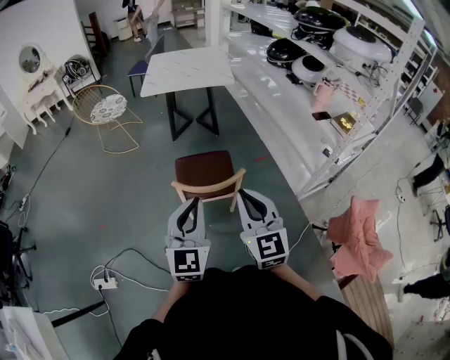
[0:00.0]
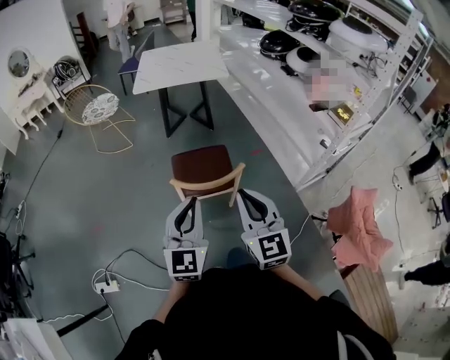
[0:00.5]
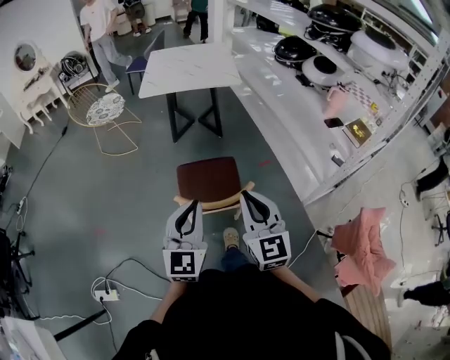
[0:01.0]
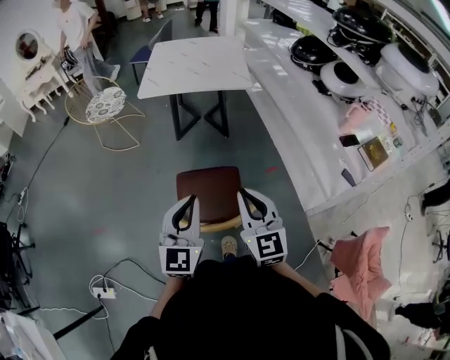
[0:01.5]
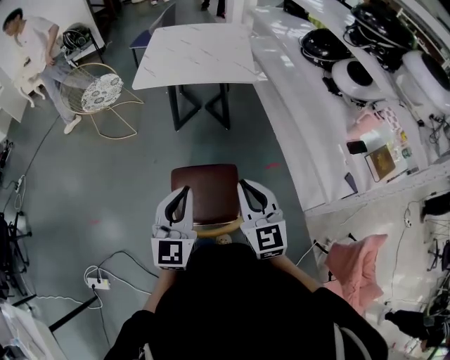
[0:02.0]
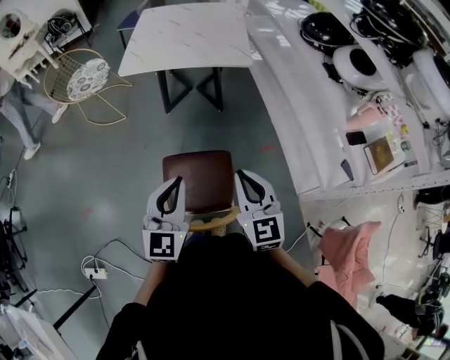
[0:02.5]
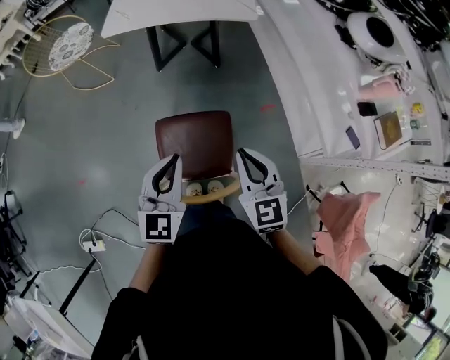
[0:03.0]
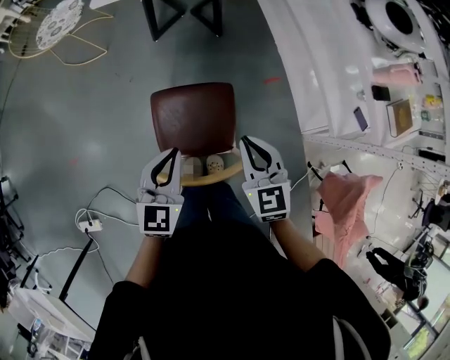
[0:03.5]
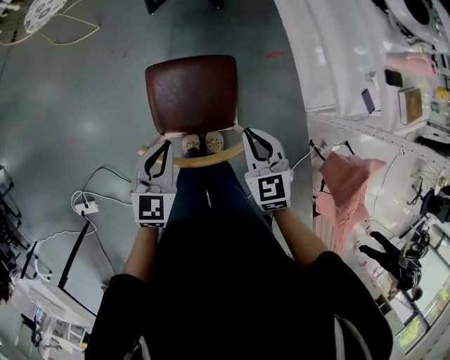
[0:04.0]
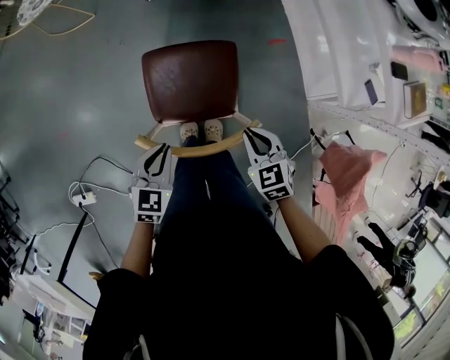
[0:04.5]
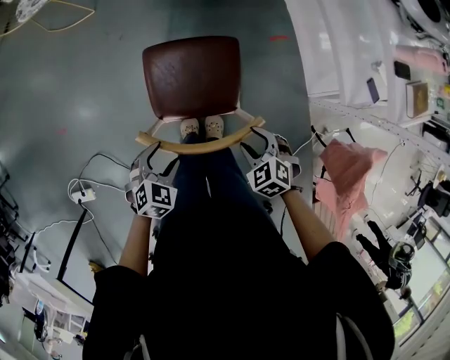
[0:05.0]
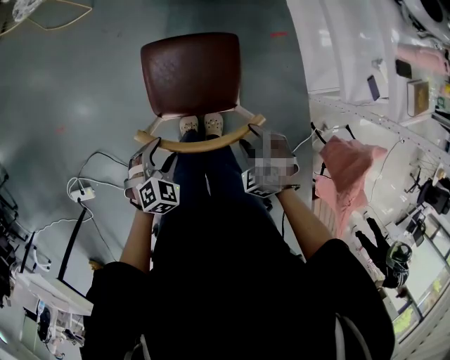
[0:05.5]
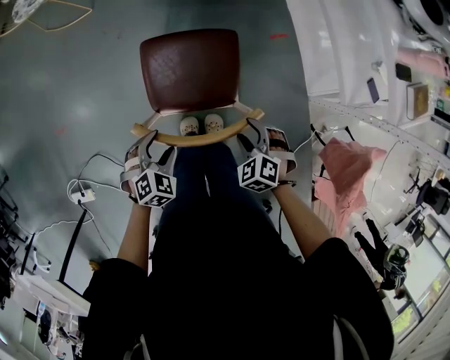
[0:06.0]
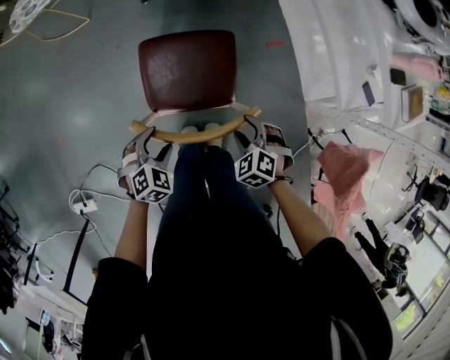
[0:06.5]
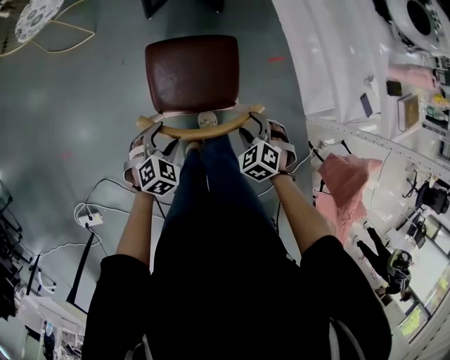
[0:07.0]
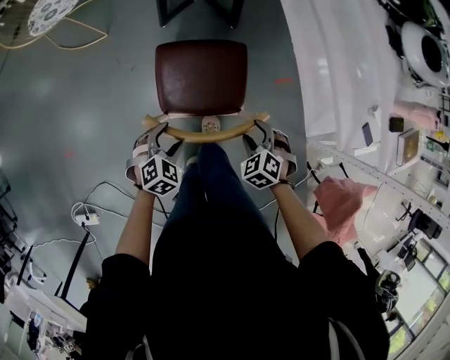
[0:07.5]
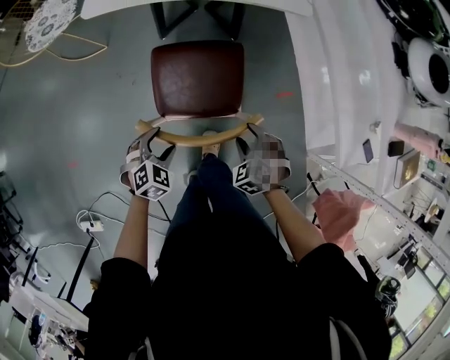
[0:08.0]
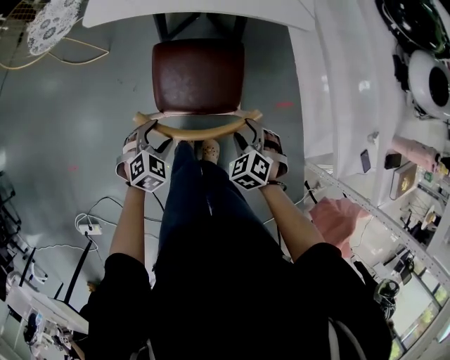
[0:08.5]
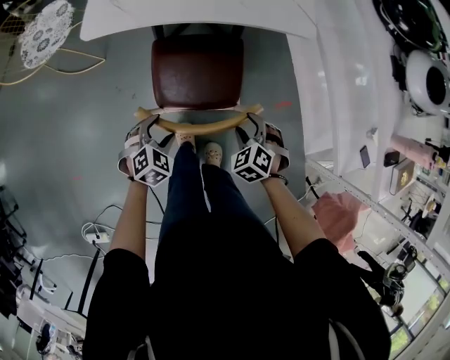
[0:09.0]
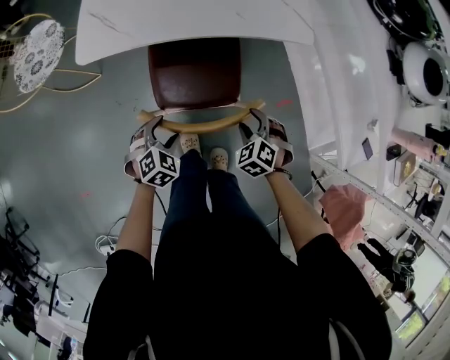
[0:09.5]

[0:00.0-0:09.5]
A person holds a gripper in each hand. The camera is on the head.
0:00.0 to 0:02.0: Both grippers travel together forward, about 35 cm.
0:02.0 to 0:04.0: The two grippers go approximately 20 cm downward. The left gripper changes its angle by some 30 degrees. The right gripper swivels approximately 30 degrees.
0:04.0 to 0:05.5: The two grippers go about 15 cm downward and backward. The right gripper changes its angle by about 40 degrees, and opens its fingers. The left gripper changes its angle by approximately 40 degrees, and opens up.
0:05.5 to 0:07.5: Both grippers move forward, approximately 20 cm.
0:07.5 to 0:09.5: Both grippers travel together forward, about 25 cm.

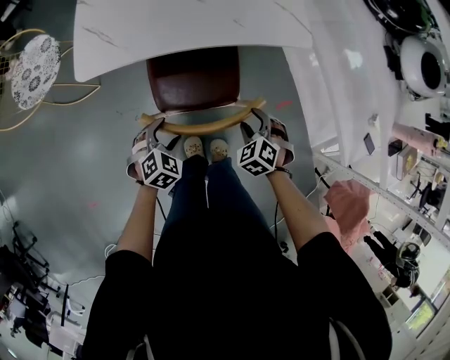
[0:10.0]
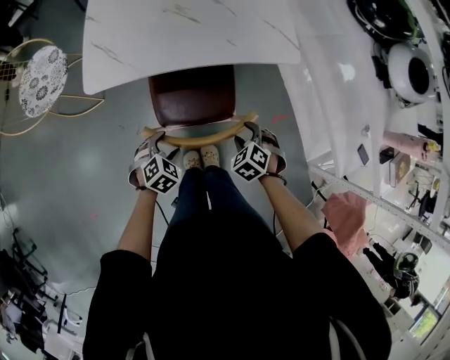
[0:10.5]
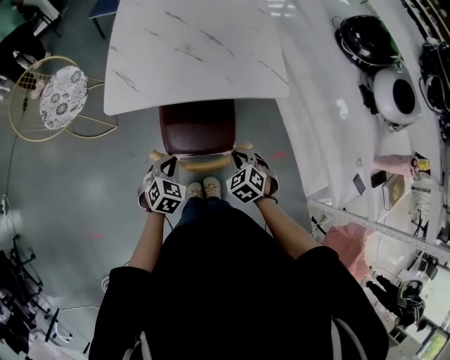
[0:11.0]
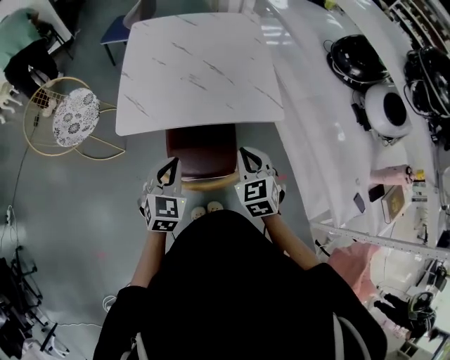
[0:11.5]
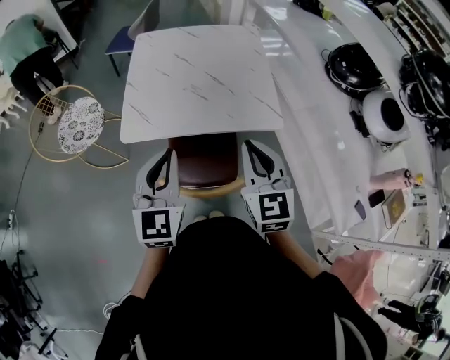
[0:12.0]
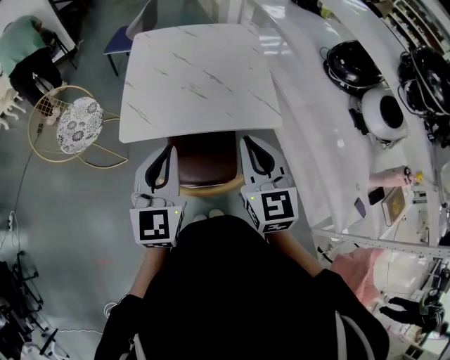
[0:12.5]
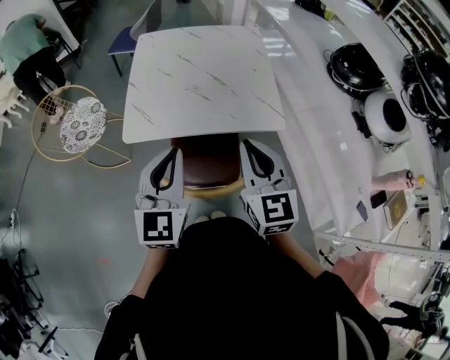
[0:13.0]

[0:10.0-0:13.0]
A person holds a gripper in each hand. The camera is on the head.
0:10.0 to 0:11.5: Both grippers travel together upward, about 25 cm. The right gripper rotates roughly 40 degrees, and closes. The left gripper swivels about 40 degrees, and closes its fingers.
0:11.5 to 0:13.0: The grippers both shift upward by some 15 cm. The left gripper rotates approximately 30 degrees. Meanwhile the right gripper swivels about 30 degrees.

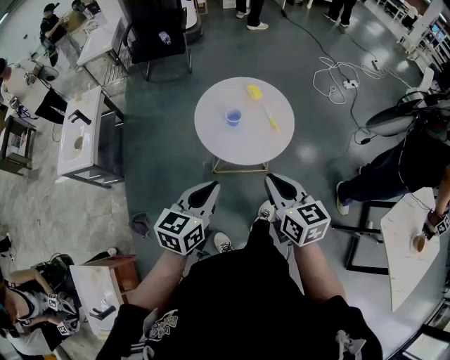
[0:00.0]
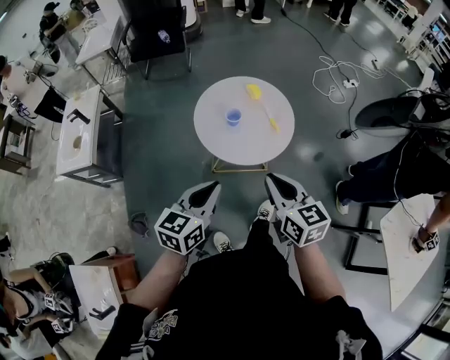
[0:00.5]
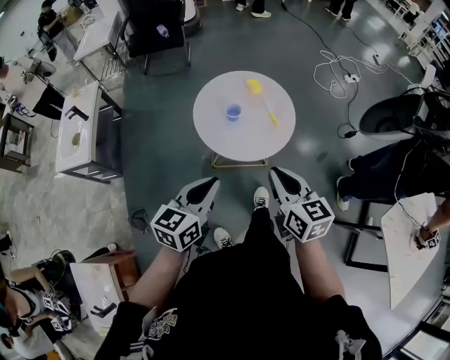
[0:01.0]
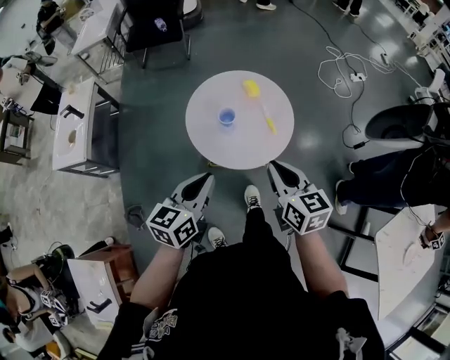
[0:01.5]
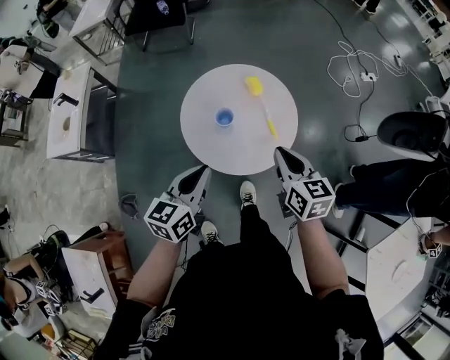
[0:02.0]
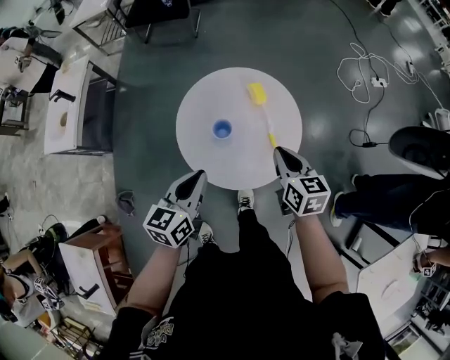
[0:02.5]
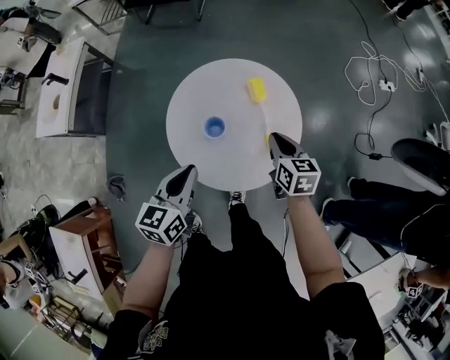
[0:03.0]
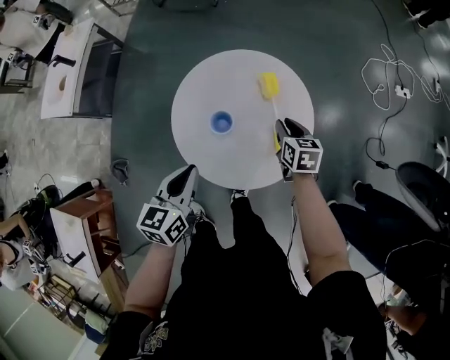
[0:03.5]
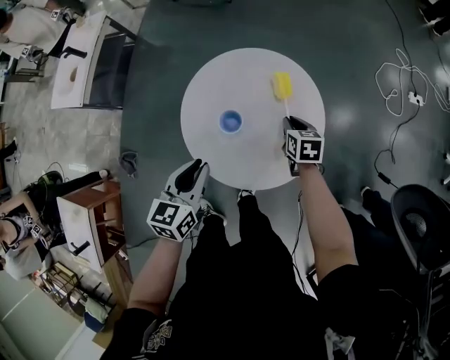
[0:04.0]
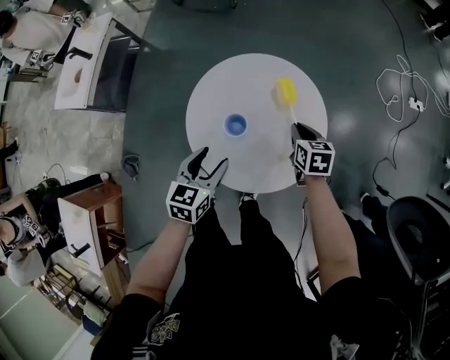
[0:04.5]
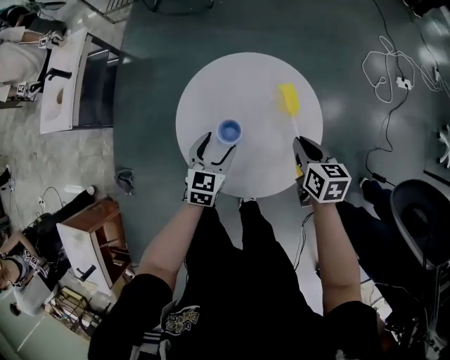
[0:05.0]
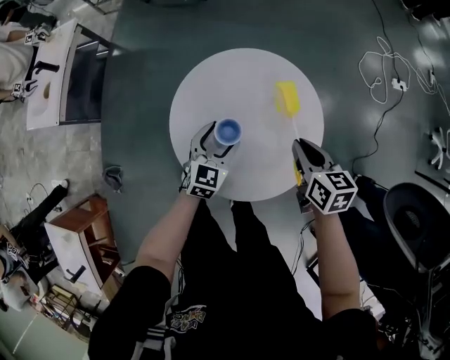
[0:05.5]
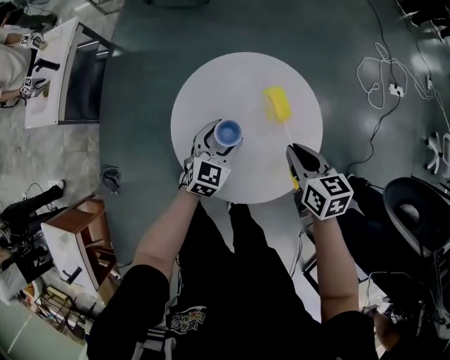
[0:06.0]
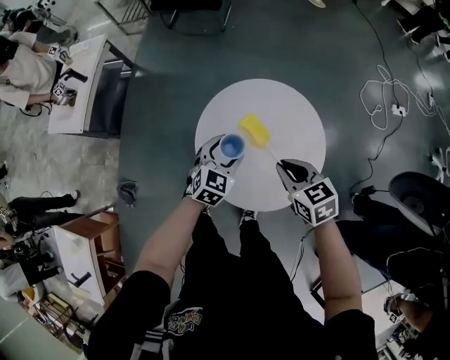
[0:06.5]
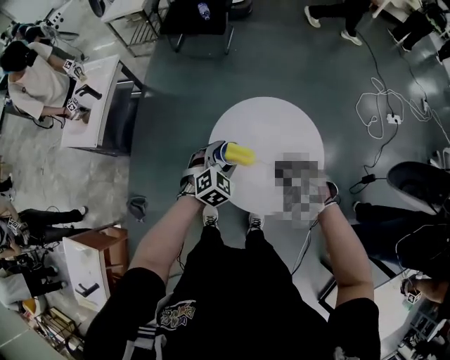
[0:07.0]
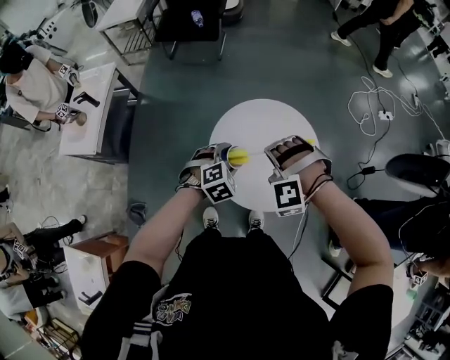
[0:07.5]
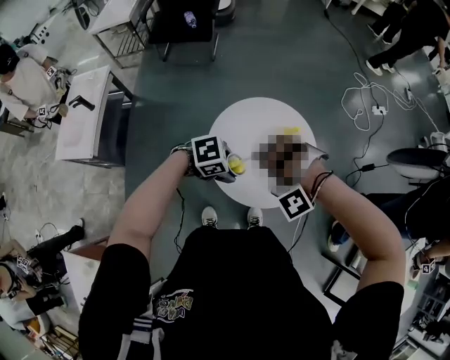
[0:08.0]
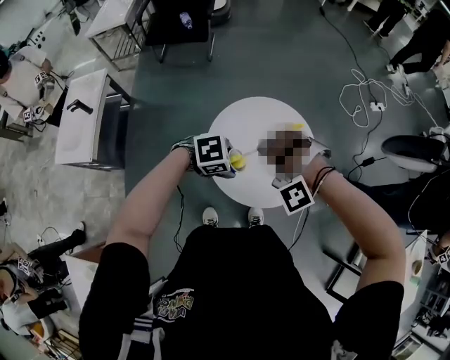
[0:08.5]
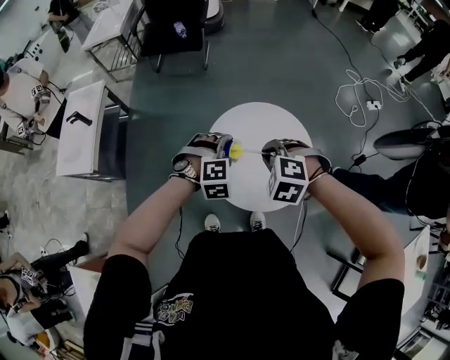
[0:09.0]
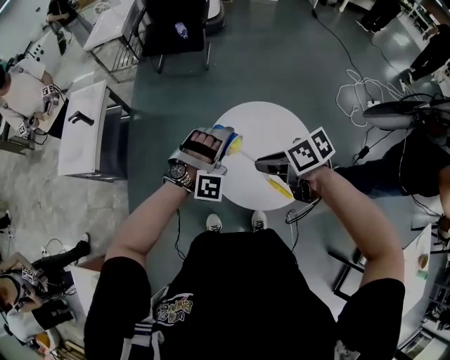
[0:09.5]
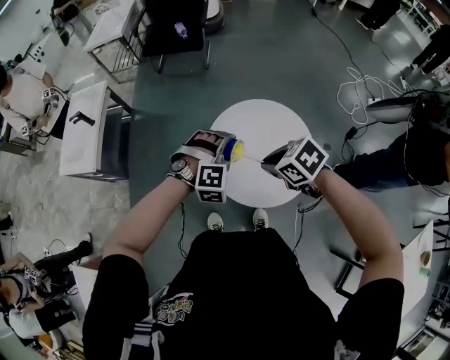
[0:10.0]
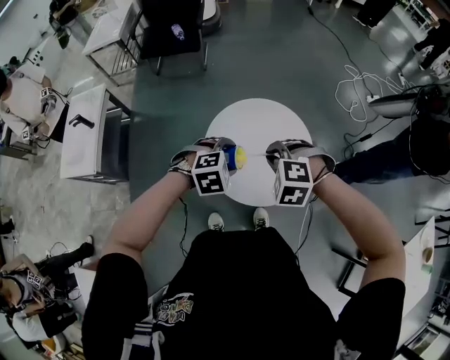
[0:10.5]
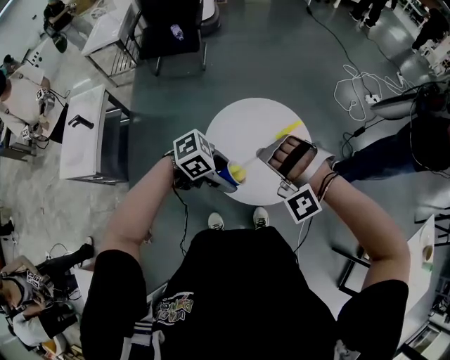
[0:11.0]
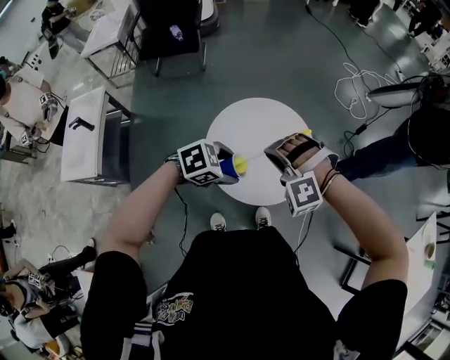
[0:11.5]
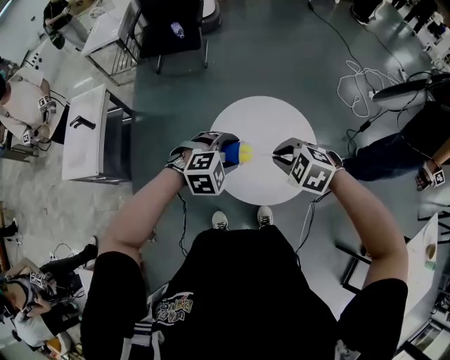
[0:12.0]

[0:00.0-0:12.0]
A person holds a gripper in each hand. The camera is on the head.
0:00.0 to 0:02.0: The two grippers go approximately 15 cm forward.
0:02.0 to 0:04.0: The right gripper is displaced downward and forward by some 30 cm, and swivels roughly 30 degrees, while the left gripper heads downward and forward, covering approximately 10 cm, and rotates approximately 20 degrees.
0:04.0 to 0:06.0: The left gripper heads downward and forward, covering approximately 15 cm, swivels about 30 degrees, and opens. The right gripper shifts roughly 15 cm upward and backward.
0:06.0 to 0:08.0: The right gripper shifts by roughly 20 cm, and rotates around the line of its fingers by approximately 140 degrees, counterclockwise from behind, while the left gripper travels upward by some 15 cm, and rotates some 70 degrees.
0:08.0 to 0:10.0: The right gripper rotates around the line of its fingers by approximately 110 degrees, clockwise from behind. The left gripper turns by roughly 60 degrees.
0:10.0 to 0:12.0: The right gripper turns by some 30 degrees; the left gripper changes its angle by about 20 degrees.

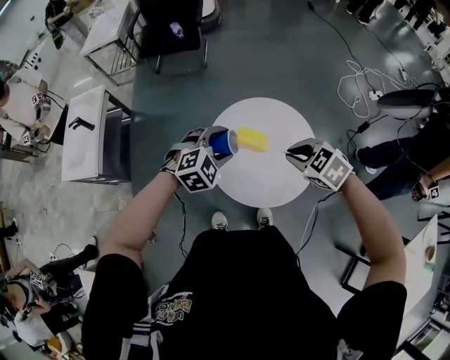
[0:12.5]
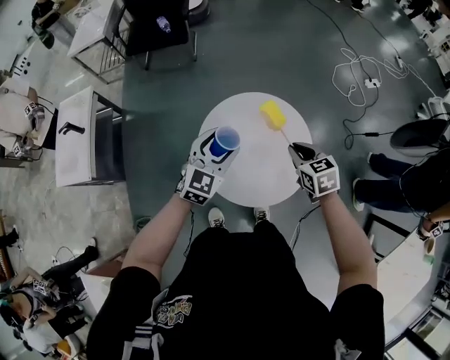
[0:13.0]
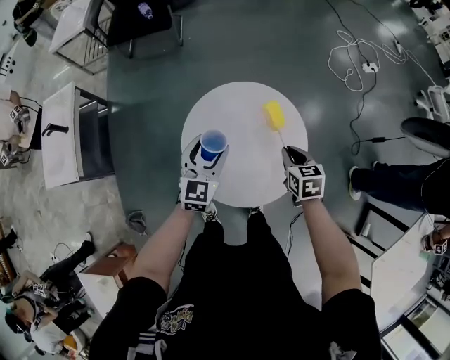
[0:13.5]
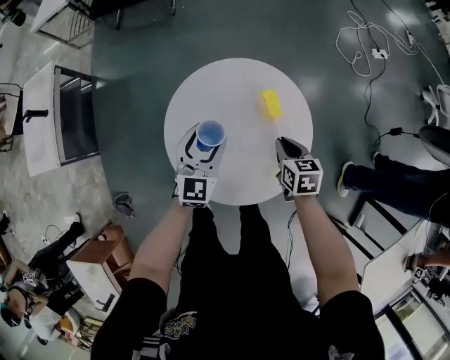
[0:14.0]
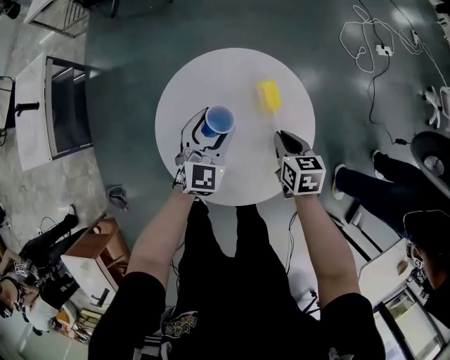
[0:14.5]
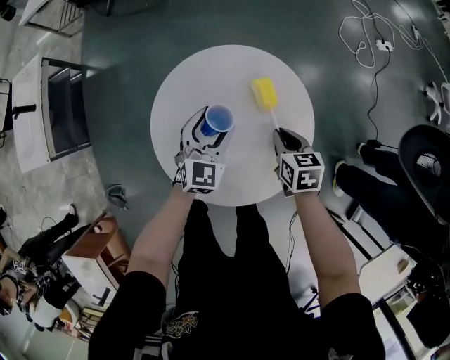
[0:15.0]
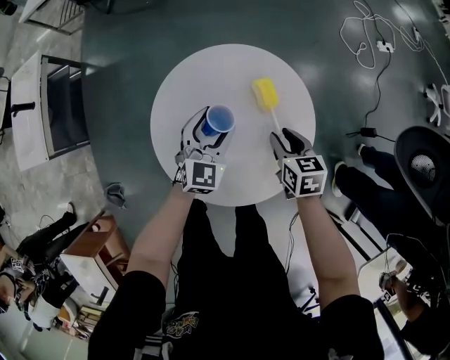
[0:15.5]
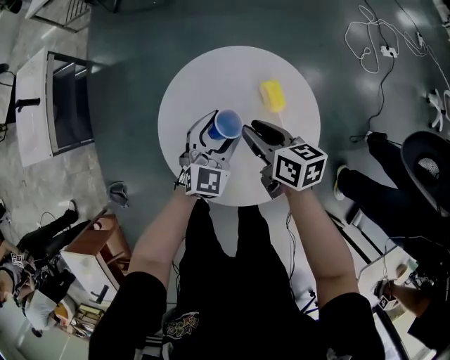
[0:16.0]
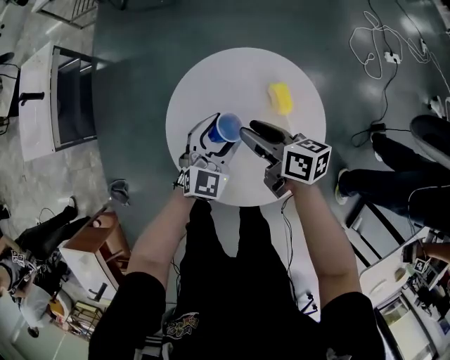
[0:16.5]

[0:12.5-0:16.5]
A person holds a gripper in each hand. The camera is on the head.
0:12.5 to 0:14.5: The two grippers go roughly 20 cm downward and to the right. The right gripper twists about 50 degrees clockwise, seen from behind; the left gripper turns by approximately 50 degrees.
0:14.5 to 0:16.5: The right gripper travels to the left and upward by approximately 15 cm, rotates some 40 degrees, and opens.
